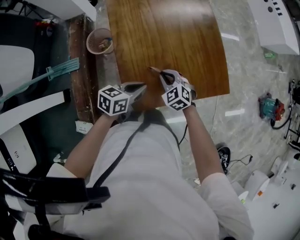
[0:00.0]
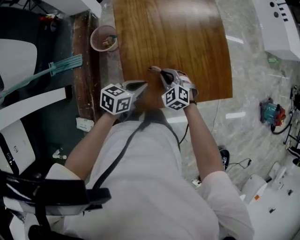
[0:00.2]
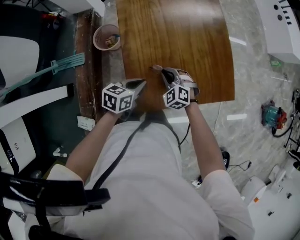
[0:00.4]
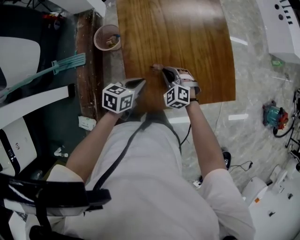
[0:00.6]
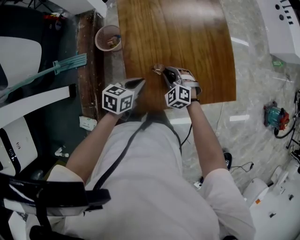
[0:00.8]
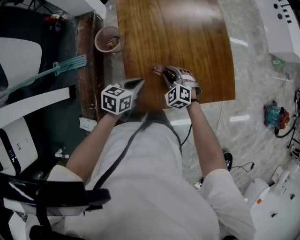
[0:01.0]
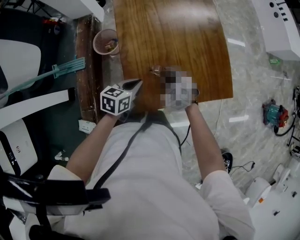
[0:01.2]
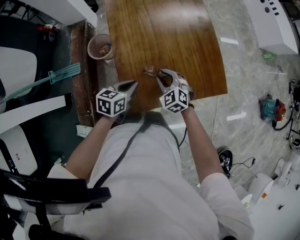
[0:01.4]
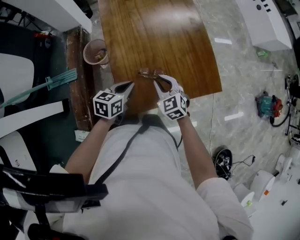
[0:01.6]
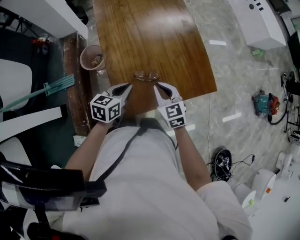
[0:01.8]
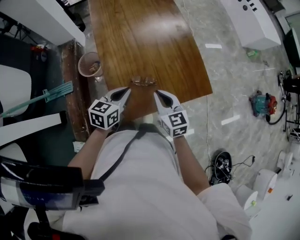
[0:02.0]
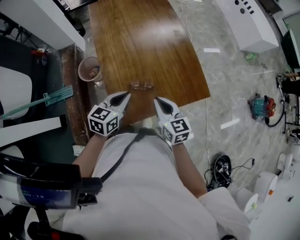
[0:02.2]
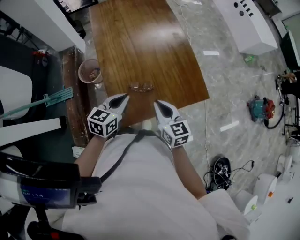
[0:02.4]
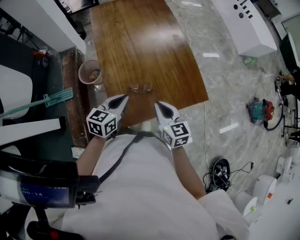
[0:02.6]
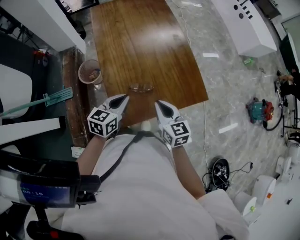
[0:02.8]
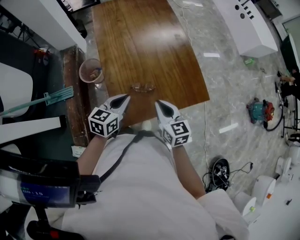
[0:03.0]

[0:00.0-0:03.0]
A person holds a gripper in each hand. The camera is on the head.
0:00.0 to 0:01.6: The right gripper is displaced upward by about 5 cm.
0:01.6 to 0:03.0: The left gripper shifts some 5 cm upward; the right gripper moves upward and backward, approximately 10 cm, and changes its angle by roughly 30 degrees.

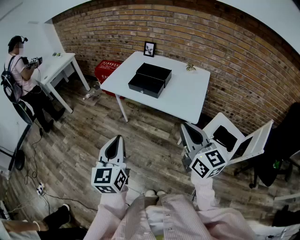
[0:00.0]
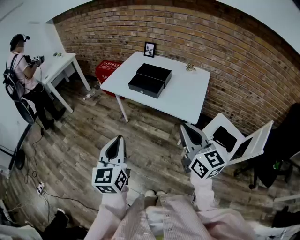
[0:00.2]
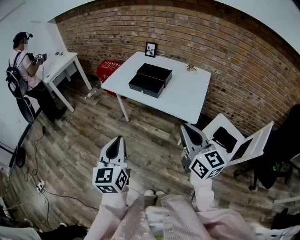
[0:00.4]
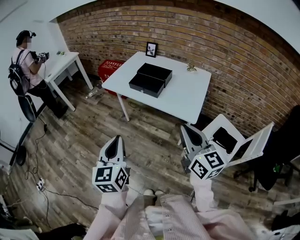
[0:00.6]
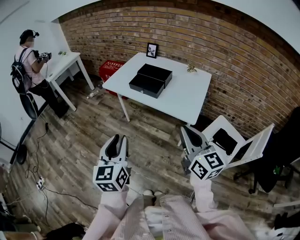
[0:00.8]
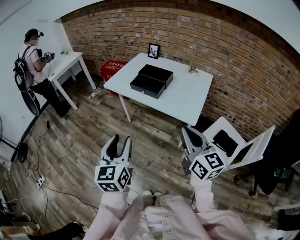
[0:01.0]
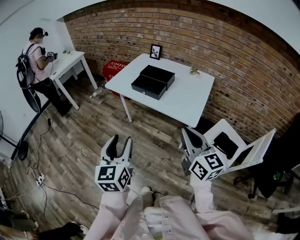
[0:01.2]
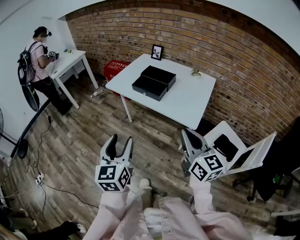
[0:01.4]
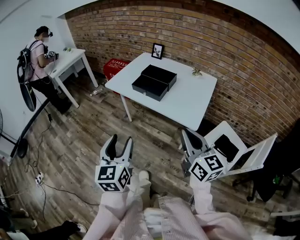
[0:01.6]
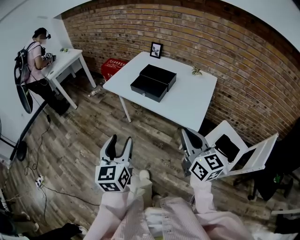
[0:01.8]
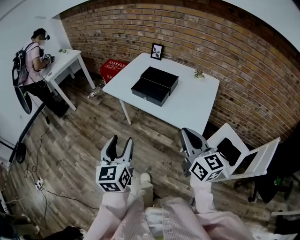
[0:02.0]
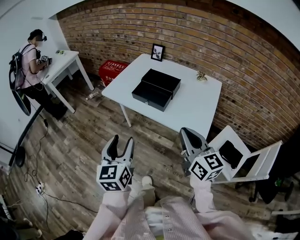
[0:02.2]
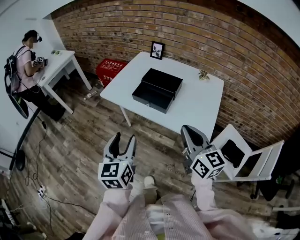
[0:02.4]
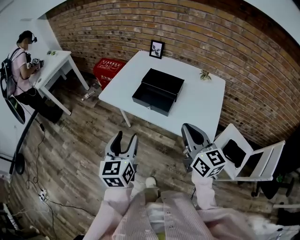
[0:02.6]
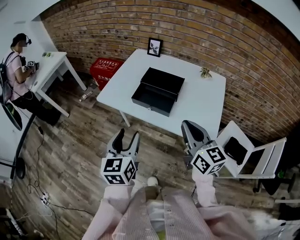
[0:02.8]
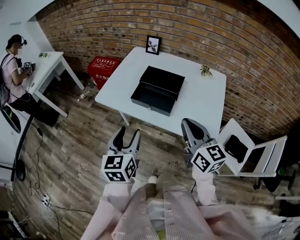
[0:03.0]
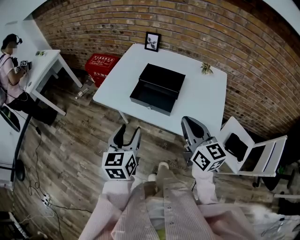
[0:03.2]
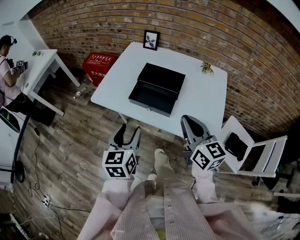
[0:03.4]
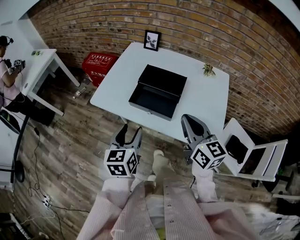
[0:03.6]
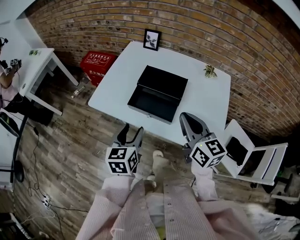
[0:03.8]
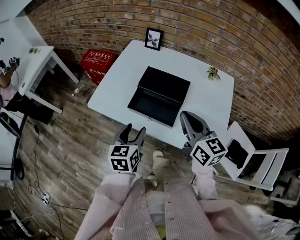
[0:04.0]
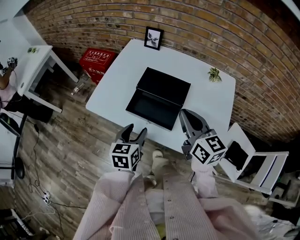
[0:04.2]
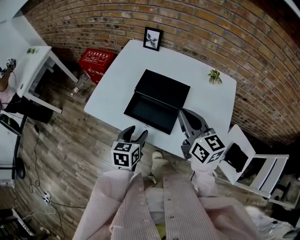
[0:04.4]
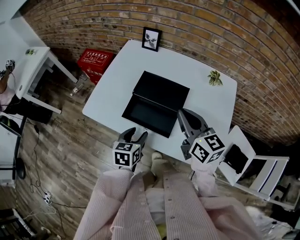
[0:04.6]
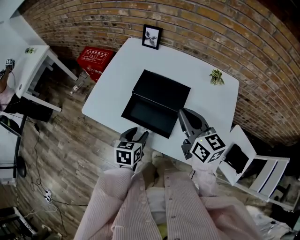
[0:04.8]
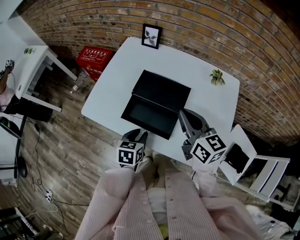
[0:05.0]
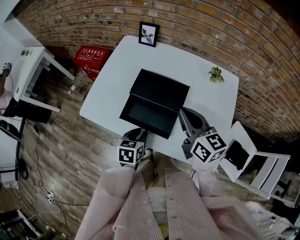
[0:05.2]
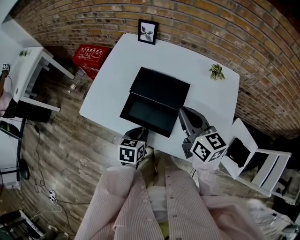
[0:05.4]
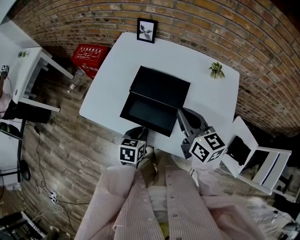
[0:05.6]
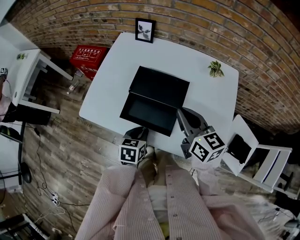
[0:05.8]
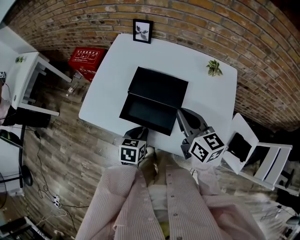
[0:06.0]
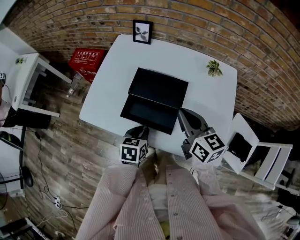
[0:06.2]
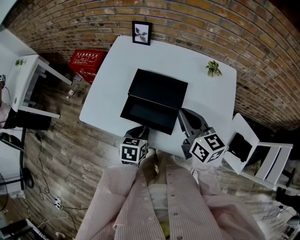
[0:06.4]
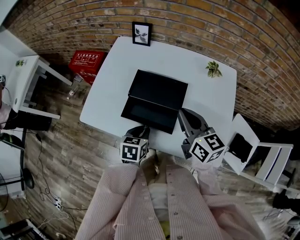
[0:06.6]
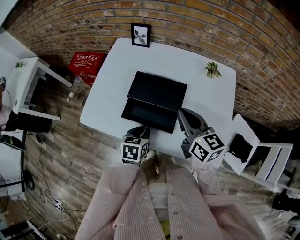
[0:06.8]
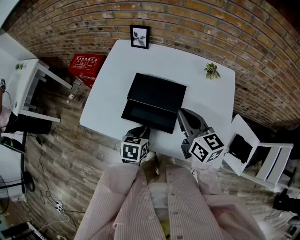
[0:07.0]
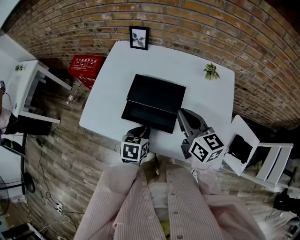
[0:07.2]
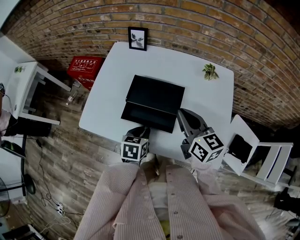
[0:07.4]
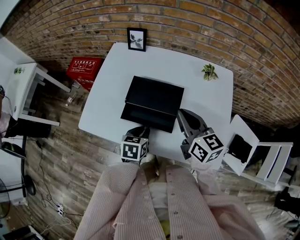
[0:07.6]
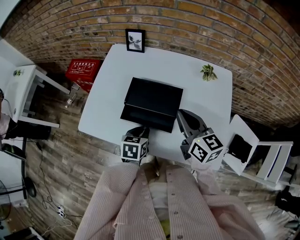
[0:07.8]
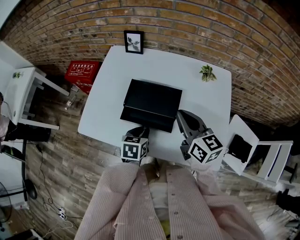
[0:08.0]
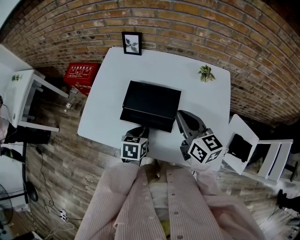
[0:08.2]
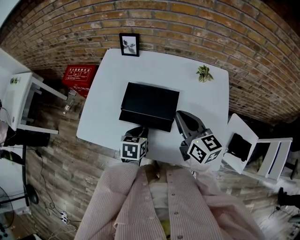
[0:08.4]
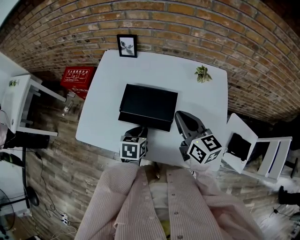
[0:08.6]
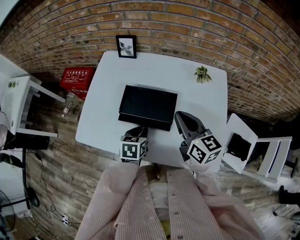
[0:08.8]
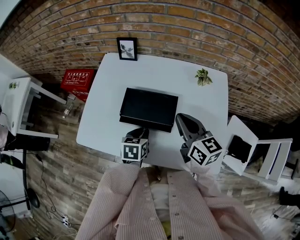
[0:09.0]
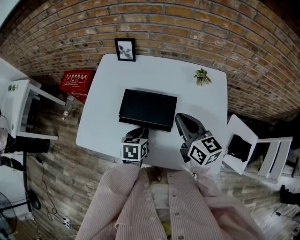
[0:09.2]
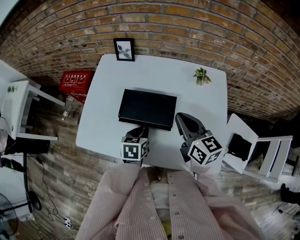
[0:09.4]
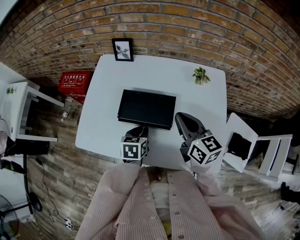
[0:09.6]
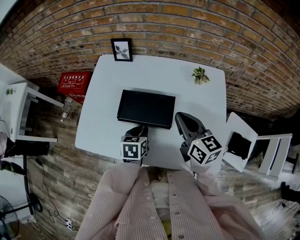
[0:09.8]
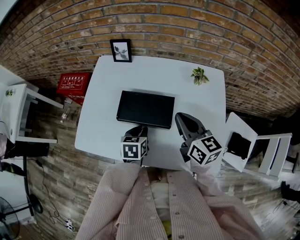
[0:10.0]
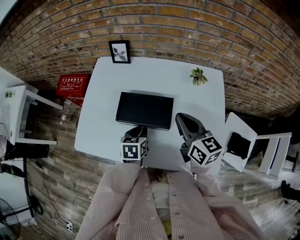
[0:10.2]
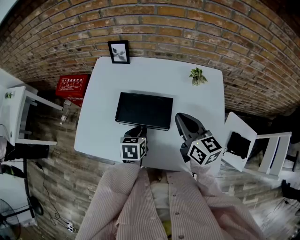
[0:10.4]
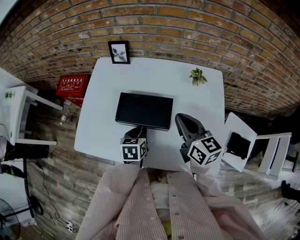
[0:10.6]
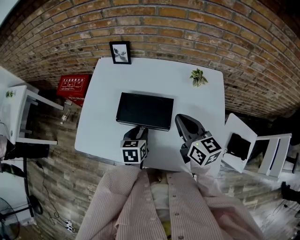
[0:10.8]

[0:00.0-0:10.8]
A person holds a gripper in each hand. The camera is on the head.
0:00.0 to 0:01.6: The left gripper opens up. The right gripper ends up approximately 5 cm from where it was.
0:01.6 to 0:03.0: Both grippers travel together forward, roughly 25 cm.
0:03.0 to 0:04.6: The left gripper goes some 25 cm forward and downward, and changes its angle by approximately 30 degrees; the right gripper goes roughly 20 cm forward.
0:04.6 to 0:06.2: The left gripper closes its fingers.
0:06.2 to 0:07.8: There are only small adjustments of the grippers.
0:07.8 to 0:09.2: The grippers move only a little.
0:09.2 to 0:10.8: There are only small adjustments of the grippers.

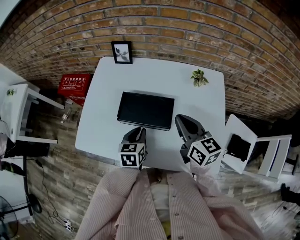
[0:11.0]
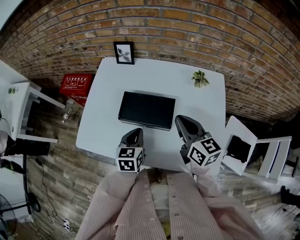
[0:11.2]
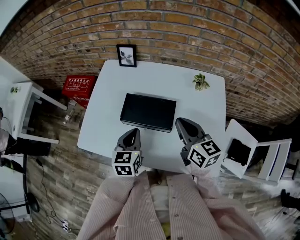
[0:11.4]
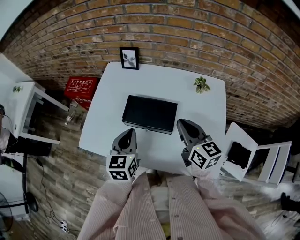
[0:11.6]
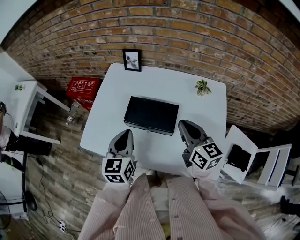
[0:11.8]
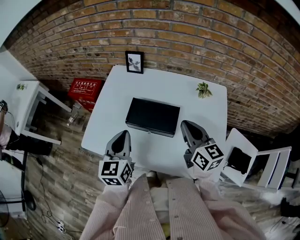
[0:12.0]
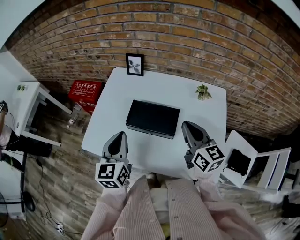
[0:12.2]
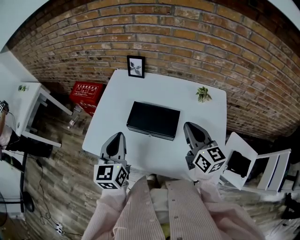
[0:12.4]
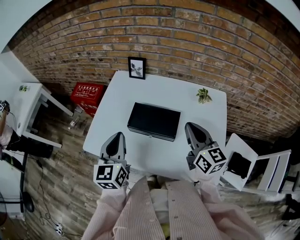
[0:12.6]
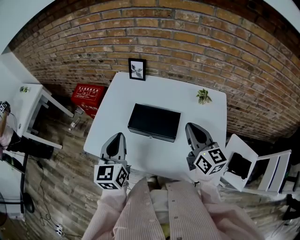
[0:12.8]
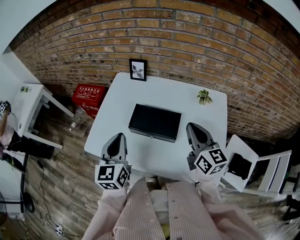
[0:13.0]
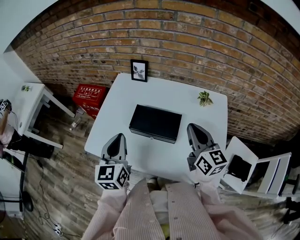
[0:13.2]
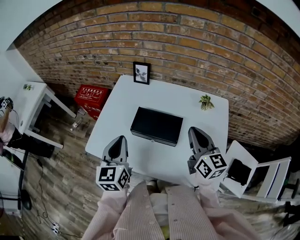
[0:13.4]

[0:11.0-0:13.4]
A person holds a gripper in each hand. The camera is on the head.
0:11.0 to 0:12.2: The left gripper shifts some 20 cm upward and to the left, and turns by approximately 30 degrees.
0:12.2 to 0:13.4: The grippers move only a little.

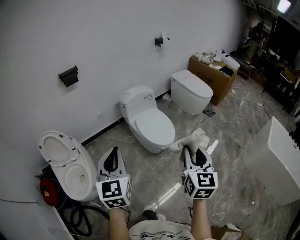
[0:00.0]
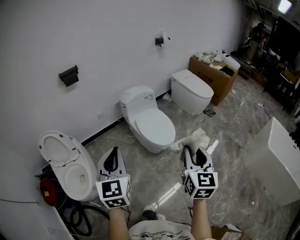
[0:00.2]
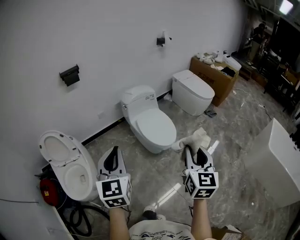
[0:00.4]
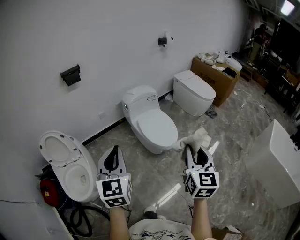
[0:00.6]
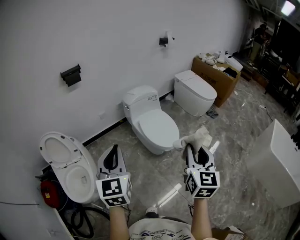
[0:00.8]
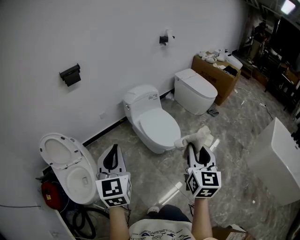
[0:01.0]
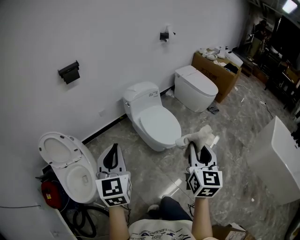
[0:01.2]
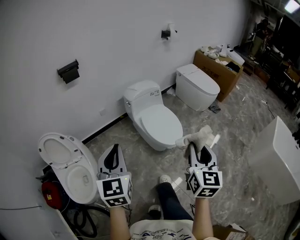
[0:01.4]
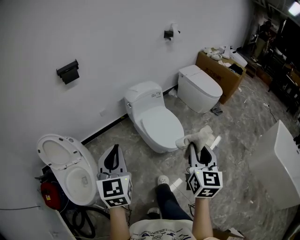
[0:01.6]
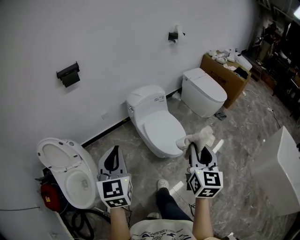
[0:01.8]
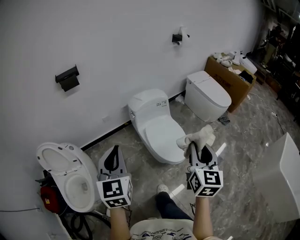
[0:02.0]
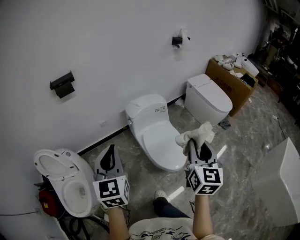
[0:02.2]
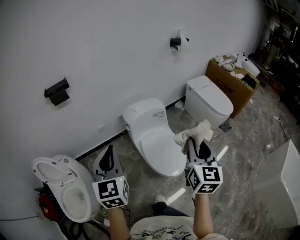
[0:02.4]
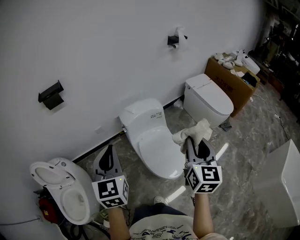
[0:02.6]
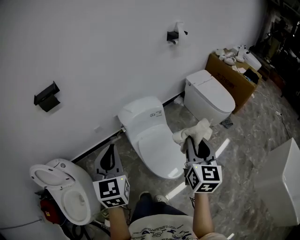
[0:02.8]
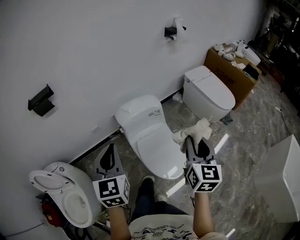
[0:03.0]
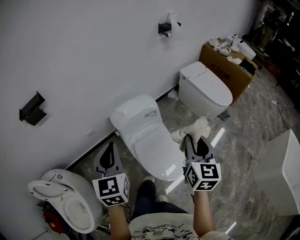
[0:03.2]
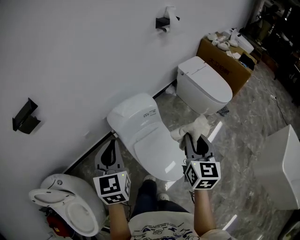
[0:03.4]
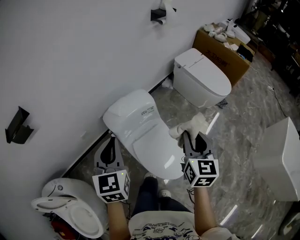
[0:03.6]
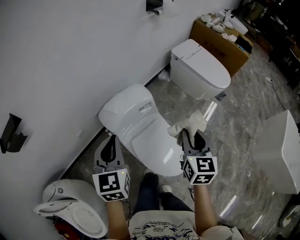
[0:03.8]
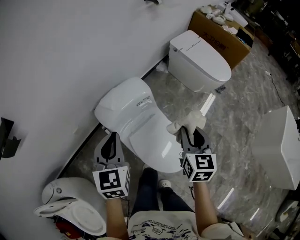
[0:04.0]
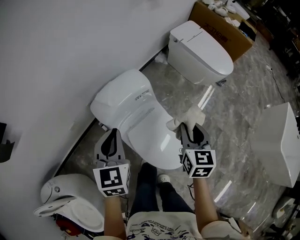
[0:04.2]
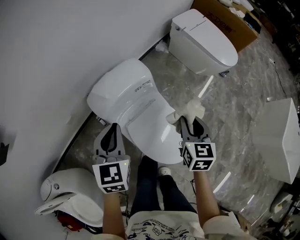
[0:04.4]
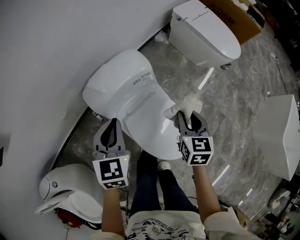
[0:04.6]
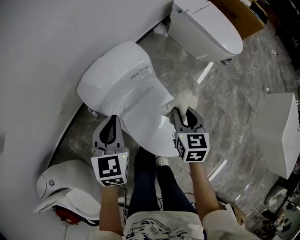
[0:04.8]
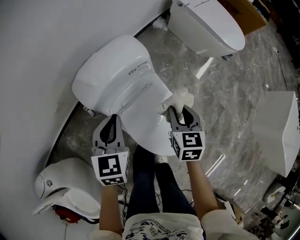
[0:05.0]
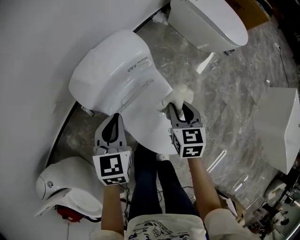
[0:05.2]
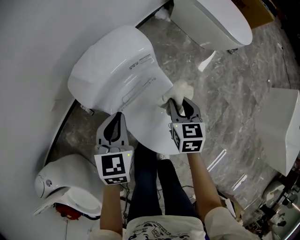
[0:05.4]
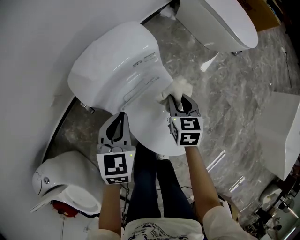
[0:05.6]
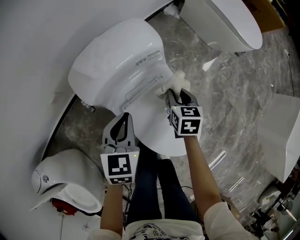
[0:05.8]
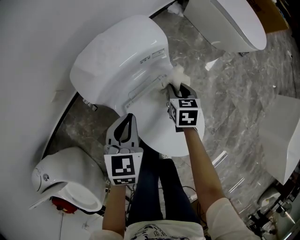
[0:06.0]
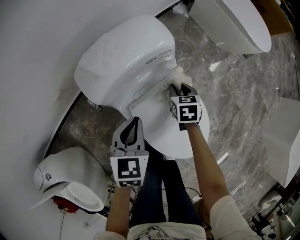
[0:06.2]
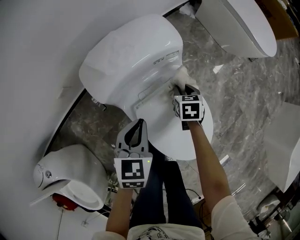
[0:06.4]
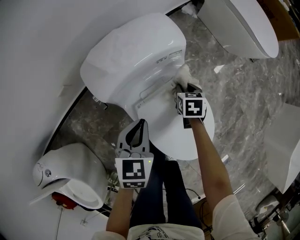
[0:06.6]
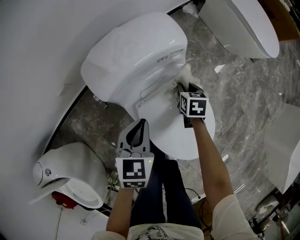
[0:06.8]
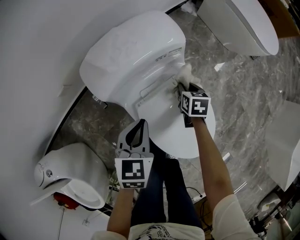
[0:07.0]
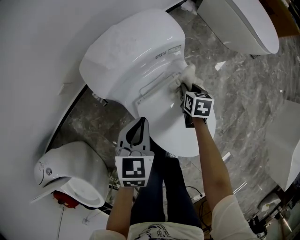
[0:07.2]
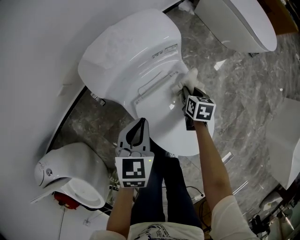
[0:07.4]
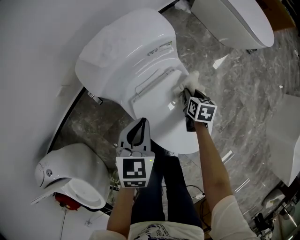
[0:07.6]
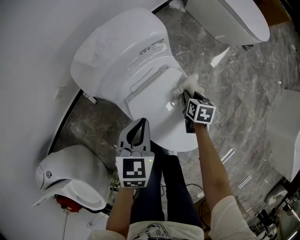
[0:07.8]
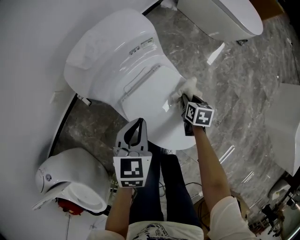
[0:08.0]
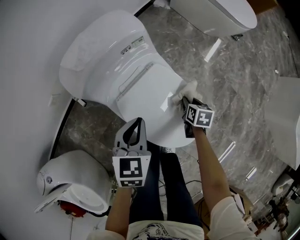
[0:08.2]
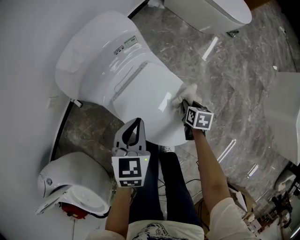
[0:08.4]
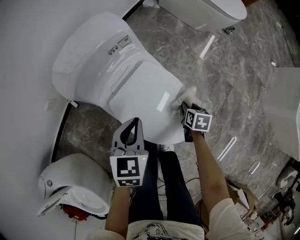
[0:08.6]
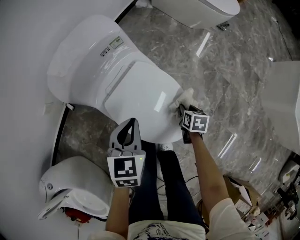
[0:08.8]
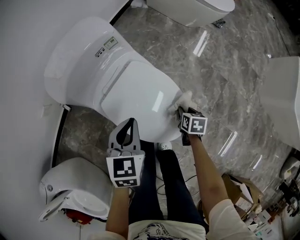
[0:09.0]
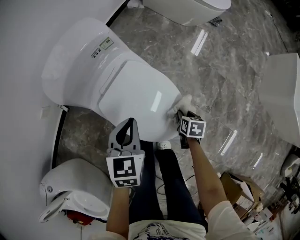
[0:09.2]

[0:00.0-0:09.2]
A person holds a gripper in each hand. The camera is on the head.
0:00.0 to 0:01.6: The left gripper is displaced forward and to the left by approximately 15 cm; the right gripper shifts approximately 10 cm forward.
0:01.6 to 0:03.0: The two grippers go approximately 35 cm forward.
0:03.0 to 0:04.6: The left gripper shifts about 35 cm forward and downward, and turns by some 30 degrees; the right gripper shifts approximately 35 cm downward and forward, and swivels roughly 30 degrees.
0:04.6 to 0:06.2: Both grippers travel together downward, approximately 20 cm. The right gripper turns by approximately 20 degrees.
0:06.2 to 0:07.6: The right gripper travels to the right and backward by approximately 10 cm.
0:07.6 to 0:09.2: The right gripper shifts some 25 cm backward and to the right. Meanwhile the left gripper shifts about 10 cm to the right.
